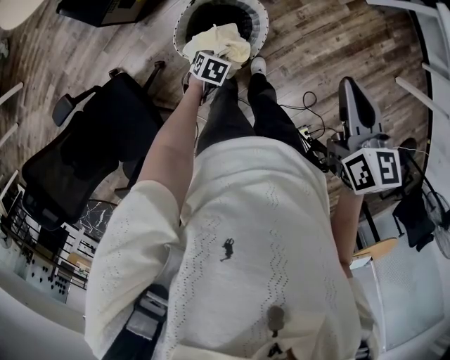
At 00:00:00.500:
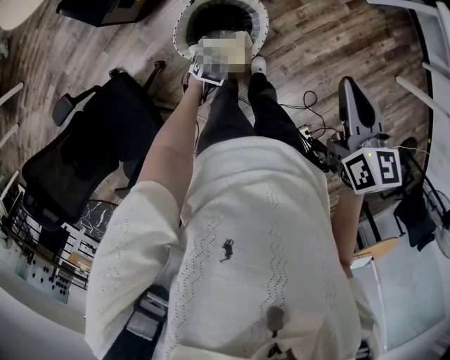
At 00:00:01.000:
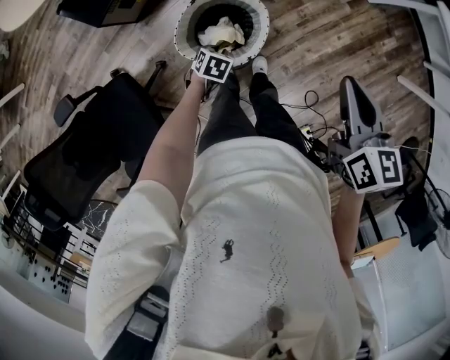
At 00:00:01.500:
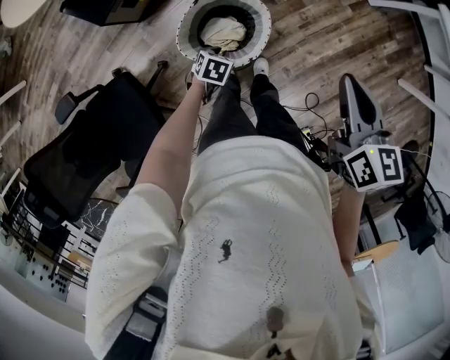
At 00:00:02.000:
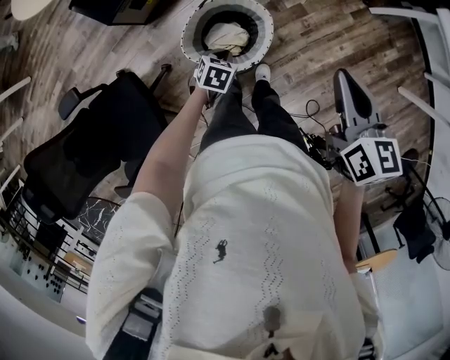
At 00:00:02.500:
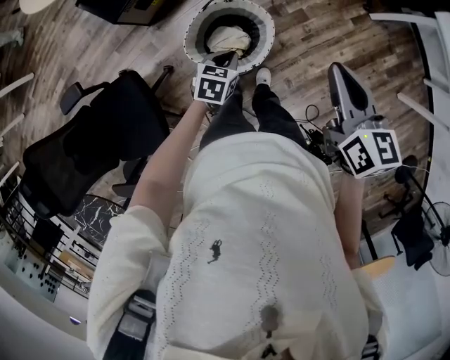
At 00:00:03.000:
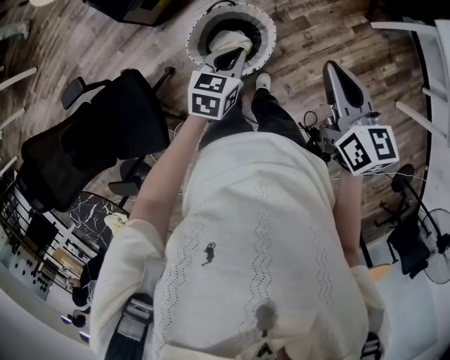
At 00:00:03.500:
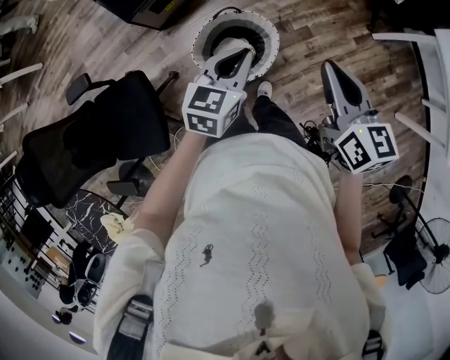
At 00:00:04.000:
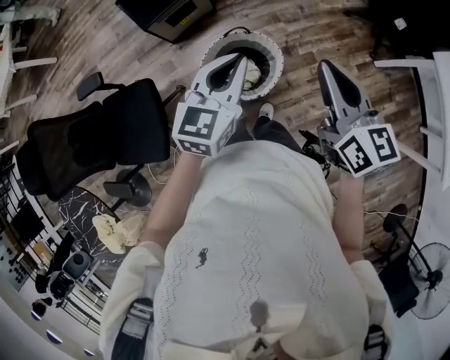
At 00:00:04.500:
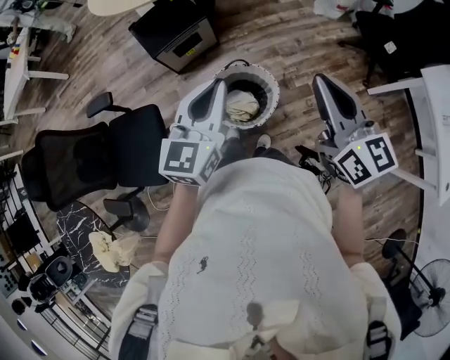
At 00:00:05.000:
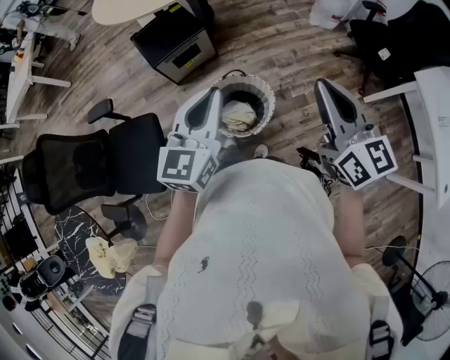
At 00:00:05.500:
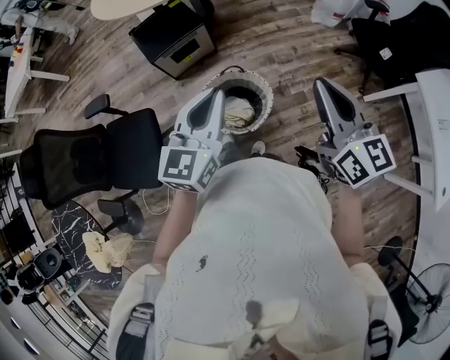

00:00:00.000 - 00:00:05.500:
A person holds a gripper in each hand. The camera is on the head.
00:00:00.000 - 00:00:02.000: The left gripper is displaced upward by some 5 cm.
00:00:02.000 - 00:00:03.500: The left gripper heads upward, covering approximately 30 cm, and tips its fingers upward by approximately 40 degrees; the right gripper is displaced upward by approximately 5 cm.
00:00:03.500 - 00:00:05.500: Both grippers move upward, roughly 20 cm. The left gripper rotates about 30 degrees, while the right gripper swivels about 20 degrees.

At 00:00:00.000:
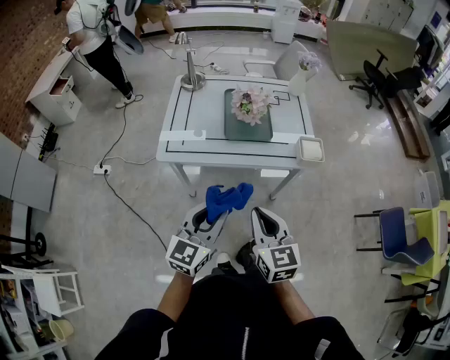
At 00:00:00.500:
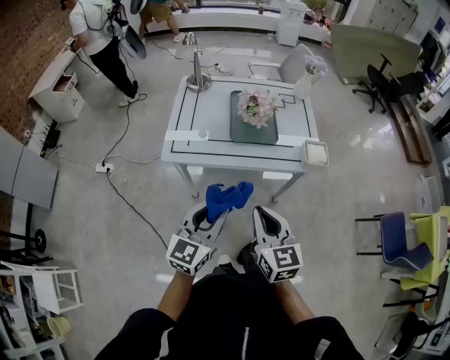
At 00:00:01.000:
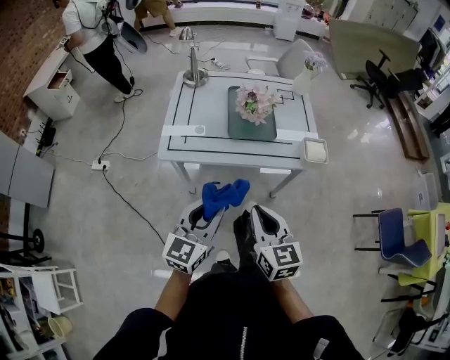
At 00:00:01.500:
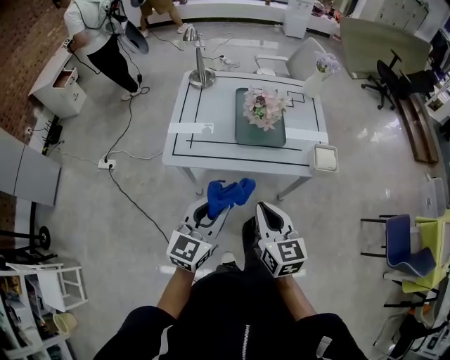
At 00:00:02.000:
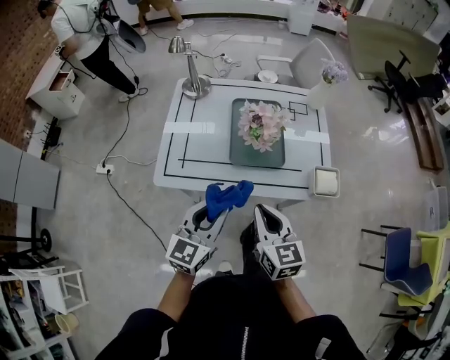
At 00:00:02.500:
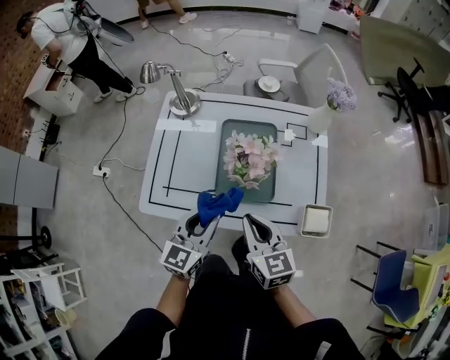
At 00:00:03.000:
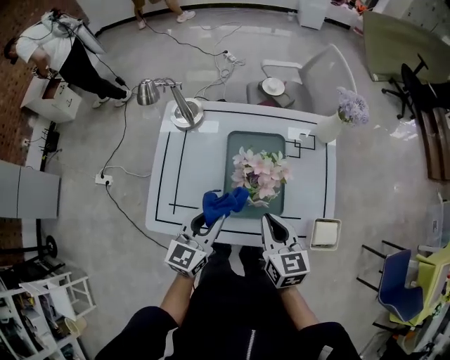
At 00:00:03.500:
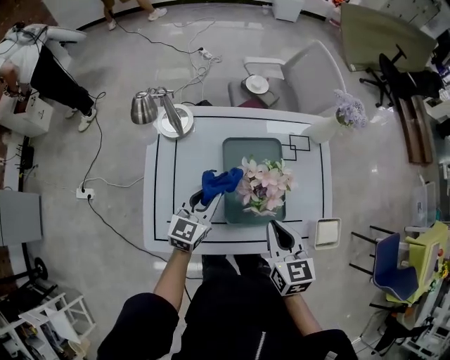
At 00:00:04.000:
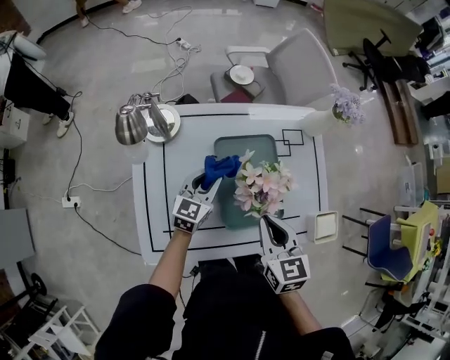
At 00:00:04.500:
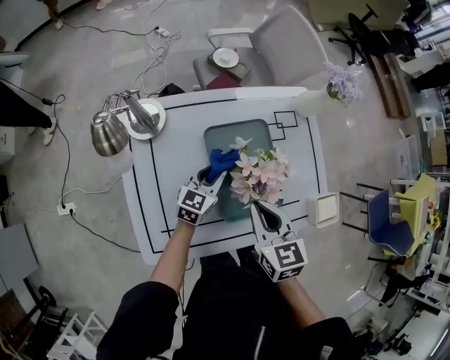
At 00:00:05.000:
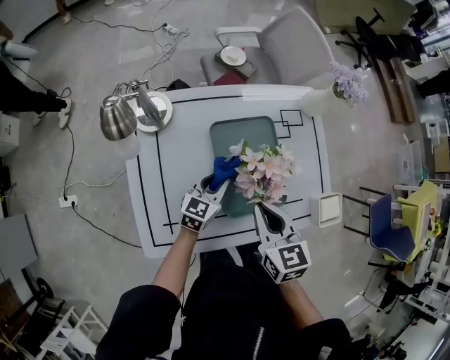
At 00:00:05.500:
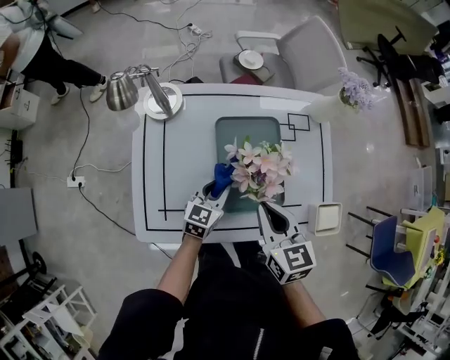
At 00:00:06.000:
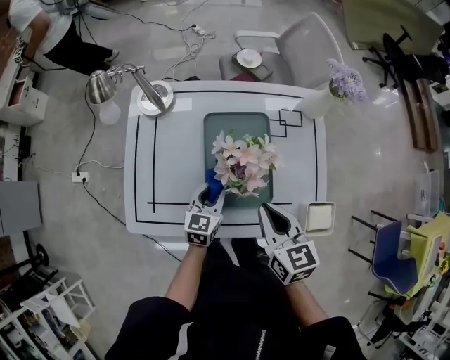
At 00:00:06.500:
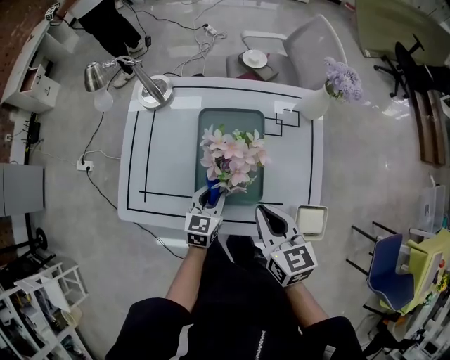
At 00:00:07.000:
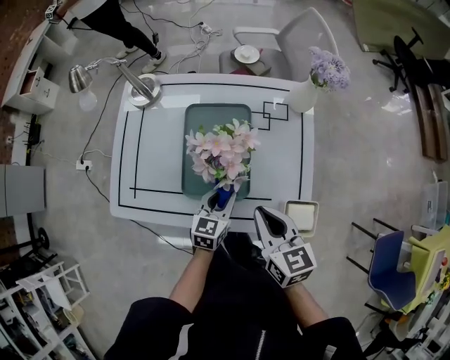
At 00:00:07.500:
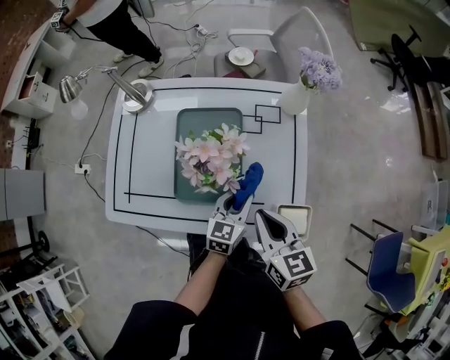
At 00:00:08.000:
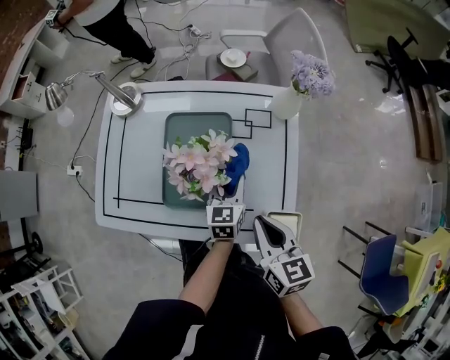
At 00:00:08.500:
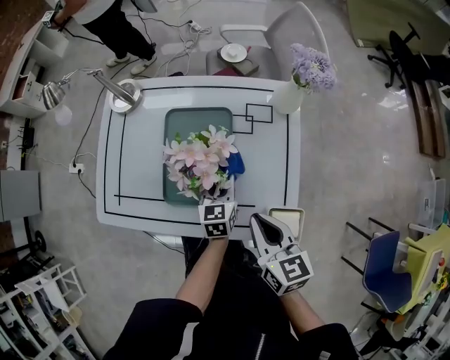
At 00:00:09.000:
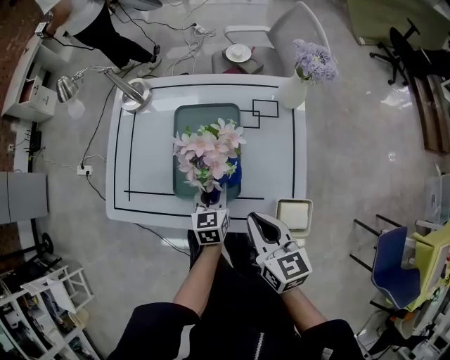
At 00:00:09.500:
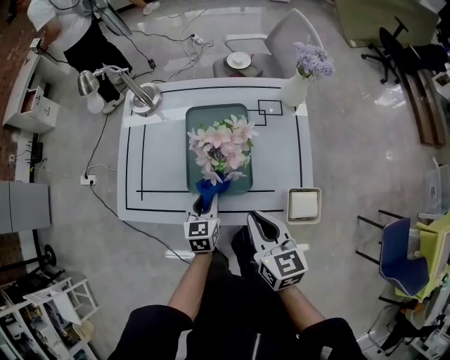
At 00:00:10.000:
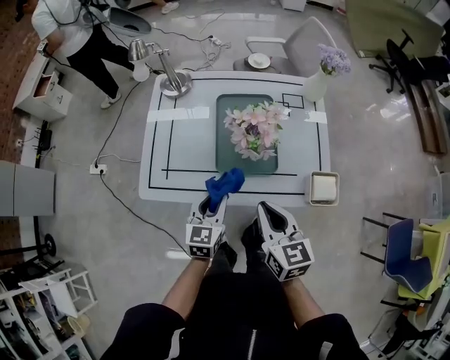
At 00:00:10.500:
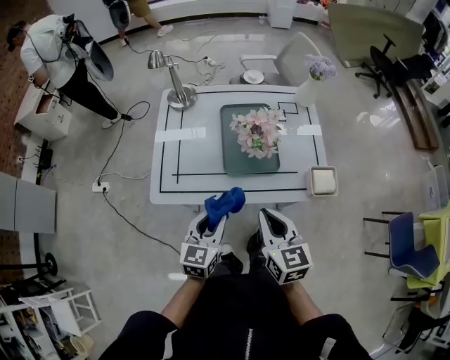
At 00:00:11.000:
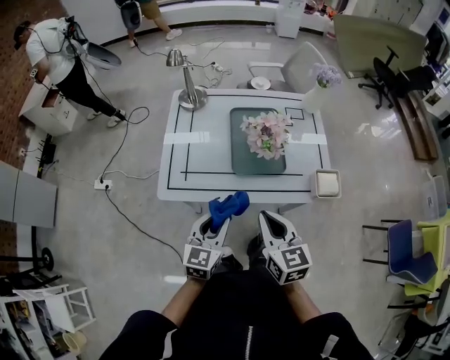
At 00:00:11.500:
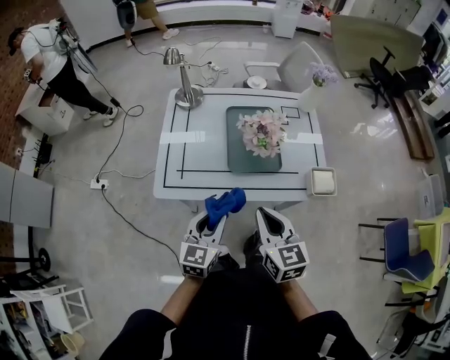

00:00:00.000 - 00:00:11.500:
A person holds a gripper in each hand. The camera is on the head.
00:00:00.000 - 00:00:02.000: Both grippers travel together forward, about 20 cm.
00:00:02.000 - 00:00:04.000: The left gripper travels forward by about 40 cm. Meanwhile the right gripper travels forward by approximately 25 cm.
00:00:04.000 - 00:00:06.000: The right gripper is displaced to the right by some 10 cm; the left gripper travels backward and to the right by approximately 15 cm.
00:00:06.000 - 00:00:07.500: The right gripper heads to the right, covering approximately 10 cm. The left gripper shifts some 20 cm to the right.
00:00:07.500 - 00:00:09.500: The right gripper is displaced to the left and backward by roughly 10 cm, while the left gripper goes approximately 15 cm to the left.
00:00:09.500 - 00:00:11.500: The left gripper heads backward, upward and to the left, covering roughly 25 cm, and turns by roughly 20 degrees; the right gripper goes some 20 cm to the left and backward.

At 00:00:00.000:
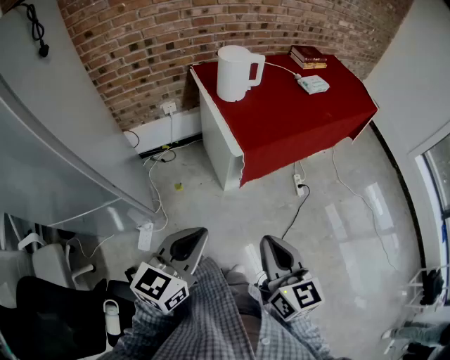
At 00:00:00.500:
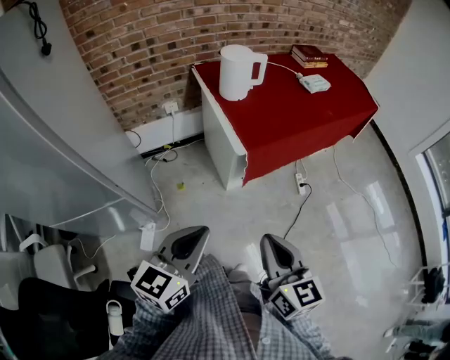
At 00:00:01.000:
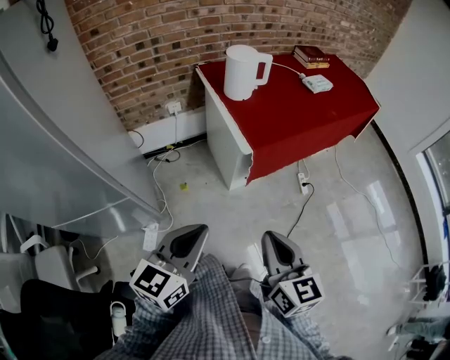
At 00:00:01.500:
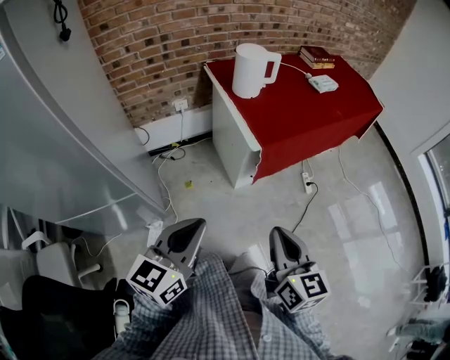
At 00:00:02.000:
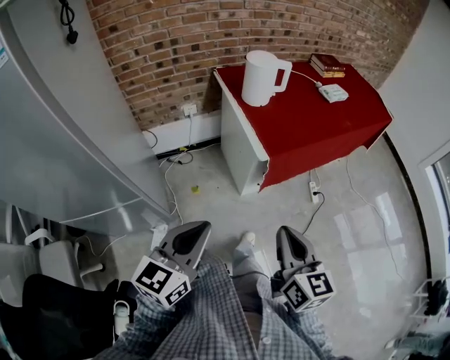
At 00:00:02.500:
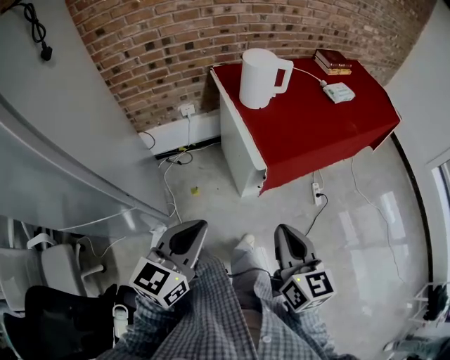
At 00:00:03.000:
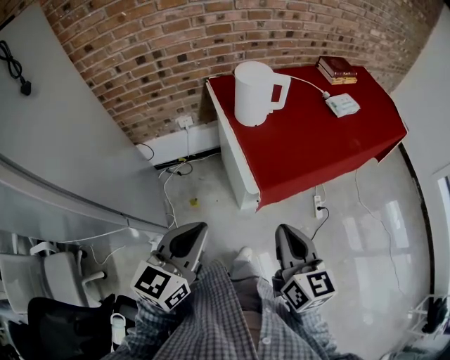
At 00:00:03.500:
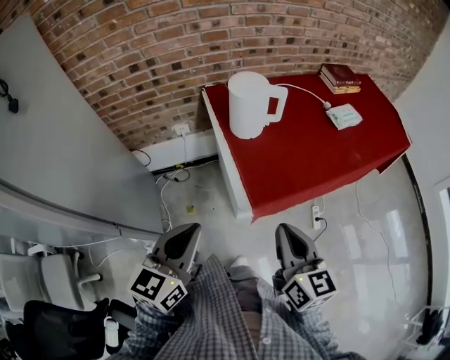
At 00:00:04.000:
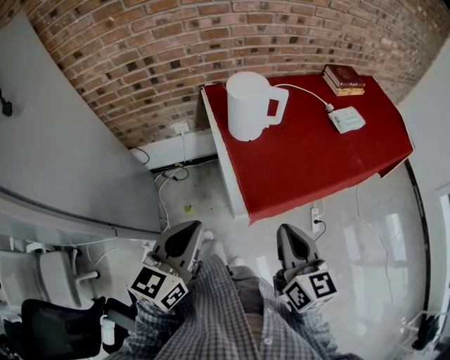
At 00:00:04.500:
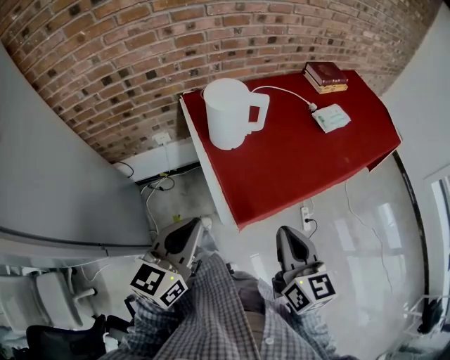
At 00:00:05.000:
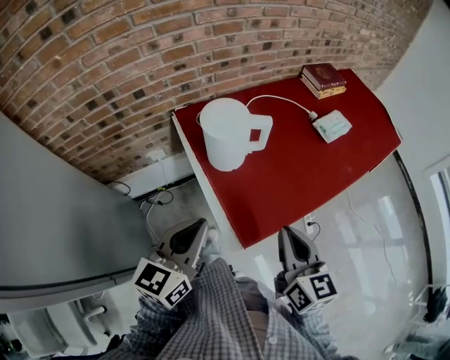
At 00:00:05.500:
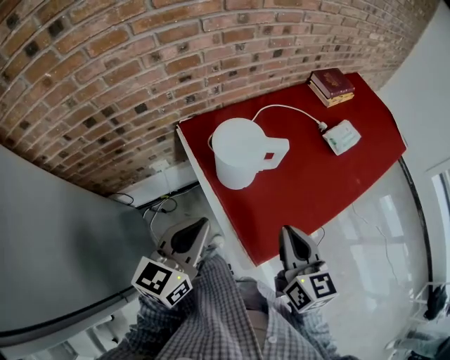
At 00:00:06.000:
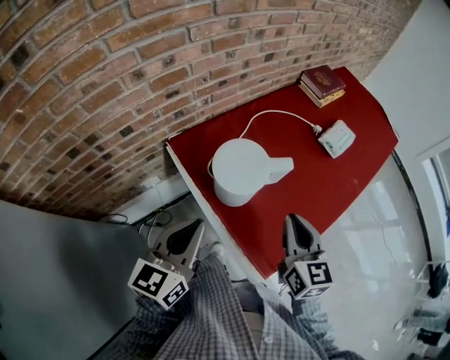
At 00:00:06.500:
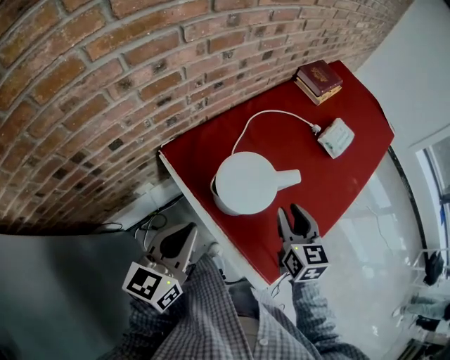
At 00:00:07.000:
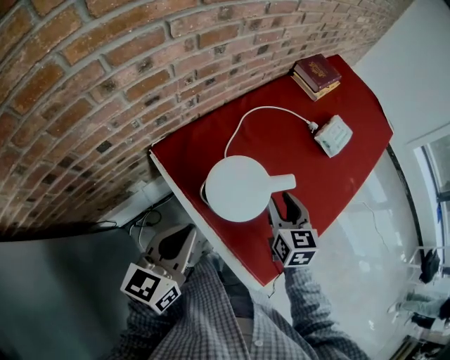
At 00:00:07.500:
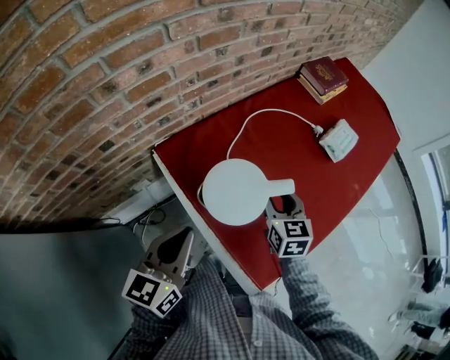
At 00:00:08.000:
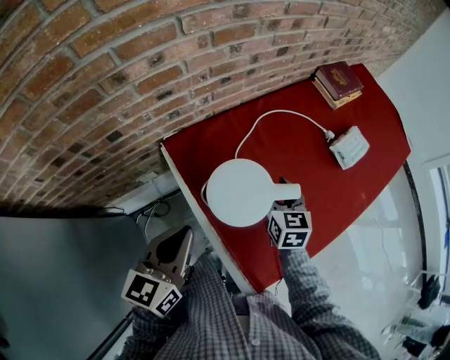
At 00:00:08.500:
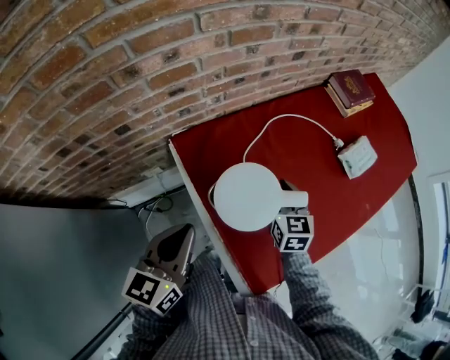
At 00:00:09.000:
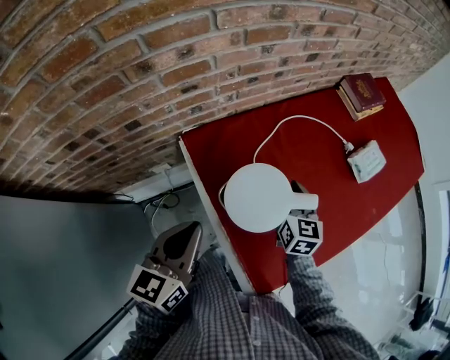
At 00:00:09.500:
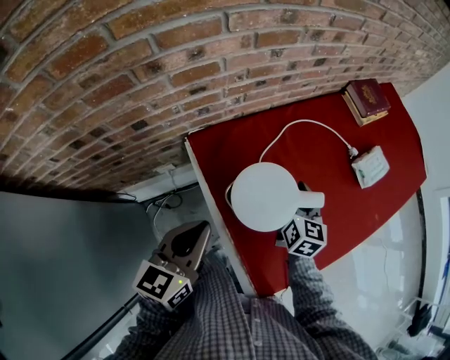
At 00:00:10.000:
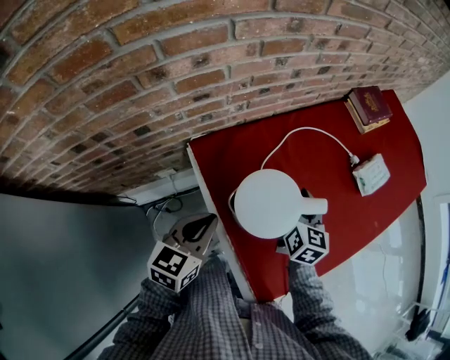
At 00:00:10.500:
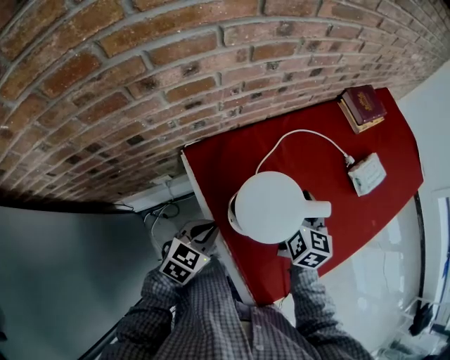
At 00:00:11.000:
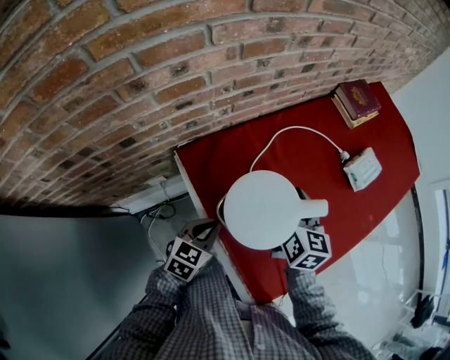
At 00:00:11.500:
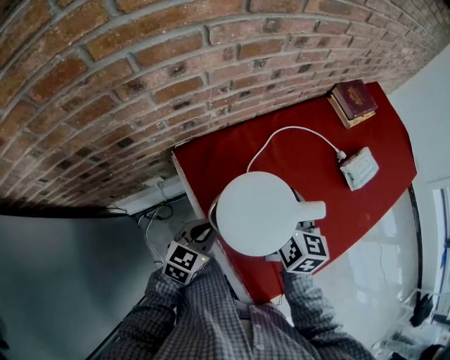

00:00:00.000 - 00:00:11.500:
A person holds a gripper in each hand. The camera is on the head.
00:00:00.000 - 00:00:02.000: The left gripper heads to the left, covering roughly 5 cm.
00:00:02.000 - 00:00:04.000: The two grippers go approximately 25 cm forward.
00:00:04.000 - 00:00:06.000: Both grippers travel together forward, some 25 cm. The right gripper changes its angle by about 30 degrees, while the left gripper changes its angle by some 20 degrees.
00:00:06.000 - 00:00:07.500: The right gripper is displaced forward and downward by approximately 15 cm, and opens its fingers, while the left gripper moves about 5 cm.
00:00:07.500 - 00:00:09.500: The right gripper changes place by roughly 5 cm, and closes its fingers.
00:00:09.500 - 00:00:11.500: The left gripper is displaced downward by some 15 cm. The right gripper shifts about 5 cm upward.
